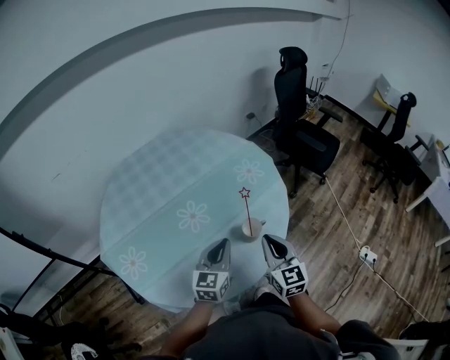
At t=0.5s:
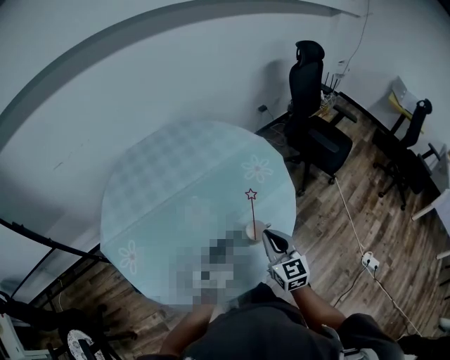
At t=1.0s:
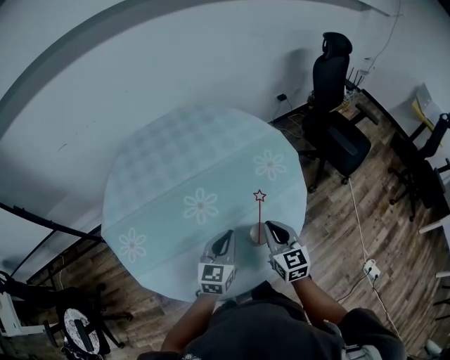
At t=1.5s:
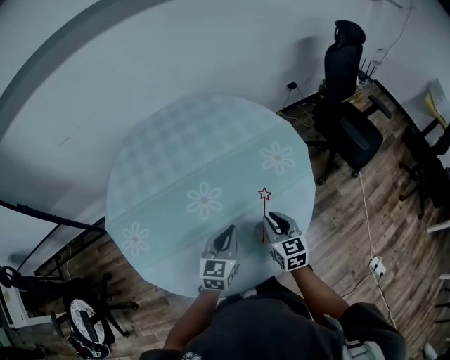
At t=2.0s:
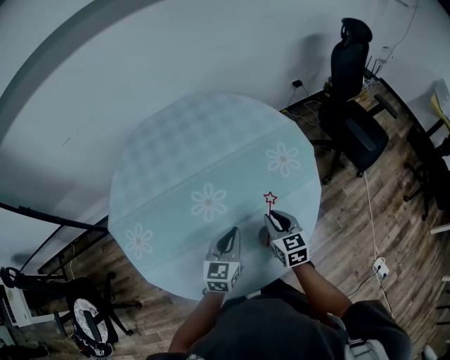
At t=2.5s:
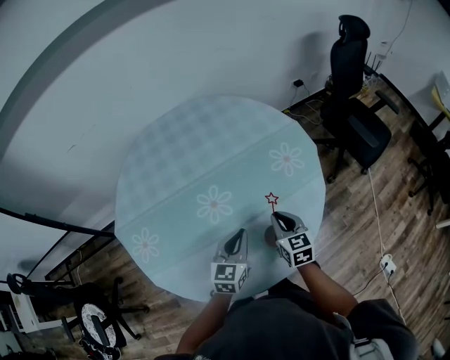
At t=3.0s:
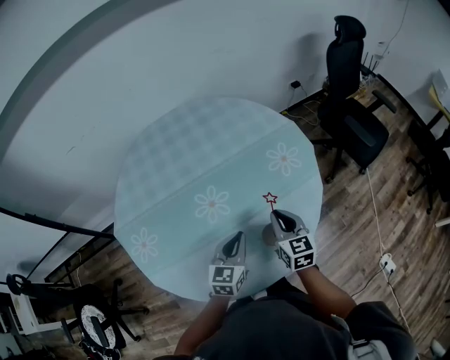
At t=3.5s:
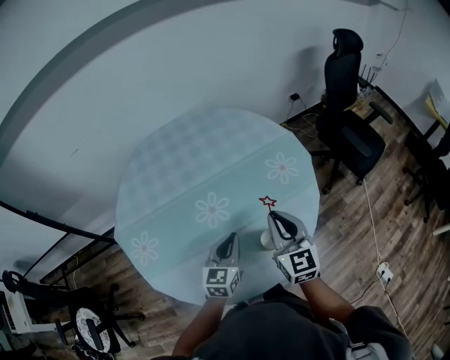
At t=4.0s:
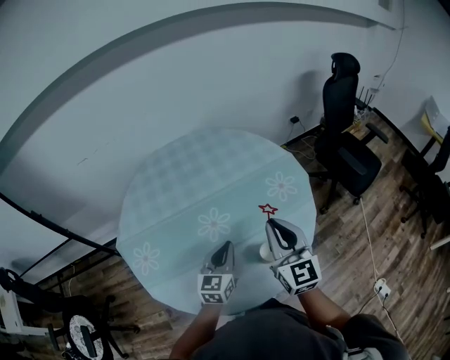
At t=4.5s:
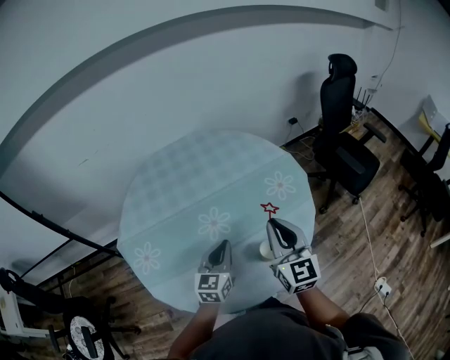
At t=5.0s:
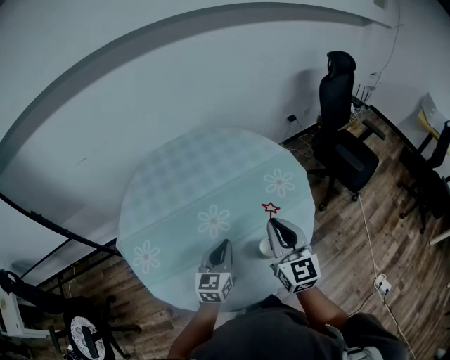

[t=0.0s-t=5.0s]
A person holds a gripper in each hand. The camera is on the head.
t=0.0s to t=2.5s: The left gripper is displaced forward and downward by approximately 10 cm; the right gripper heads forward and downward, covering some 20 cm, and swivels about 20 degrees.
t=2.5s to t=5.0s: The right gripper moves upward, about 20 cm, and rotates roughly 30 degrees; the left gripper moves upward, roughly 5 cm.

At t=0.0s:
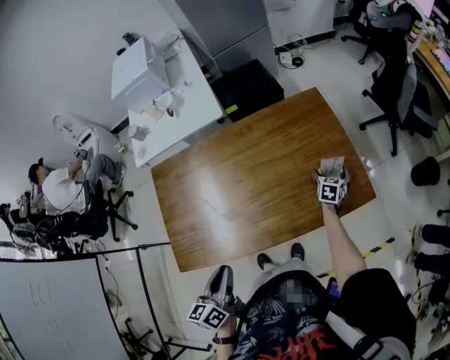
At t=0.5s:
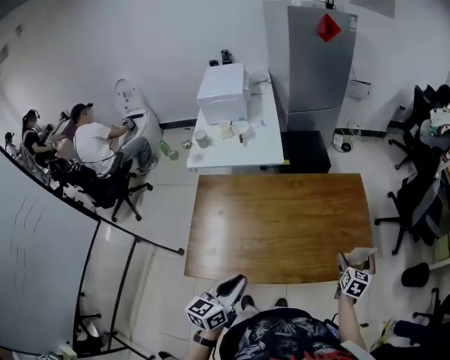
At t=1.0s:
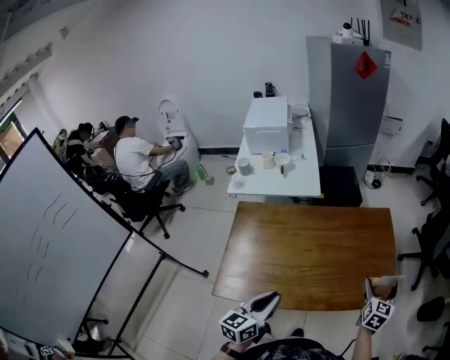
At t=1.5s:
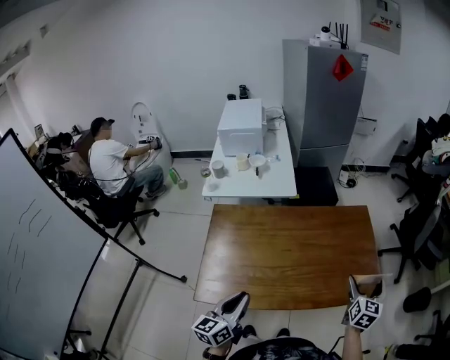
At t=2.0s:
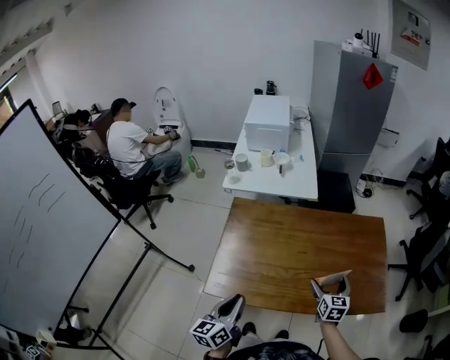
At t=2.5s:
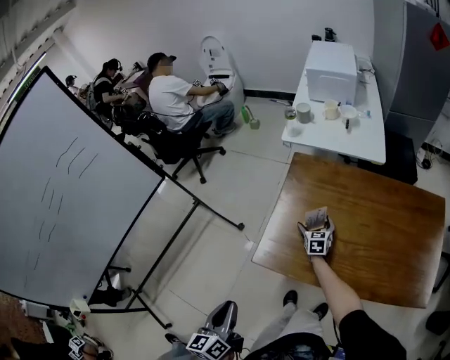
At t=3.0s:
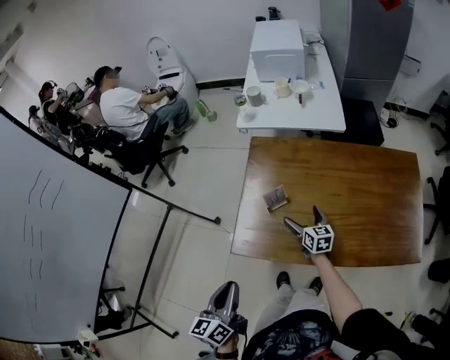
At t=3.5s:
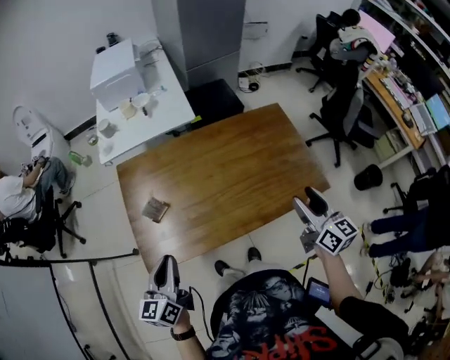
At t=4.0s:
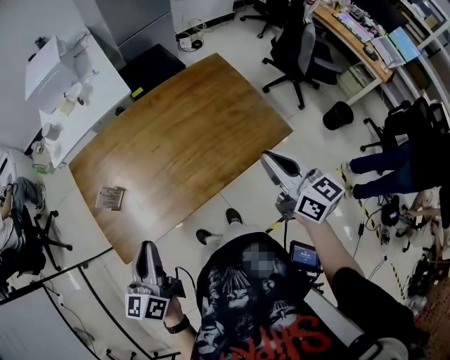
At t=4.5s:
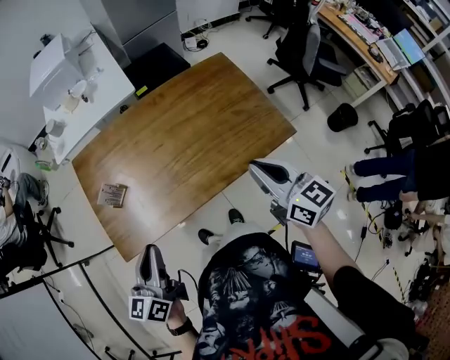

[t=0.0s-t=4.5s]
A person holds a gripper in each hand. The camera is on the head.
t=0.0s to t=2.0s: The left gripper goes some 20 cm to the left and backward; the right gripper is displaced to the left, upward and backward by some 40 cm, and swivels approximately 30 degrees.
t=2.0s to t=4.5s: The right gripper turns by about 20 degrees, and closes its fingers. Meanwhile the left gripper changes its angle by roughly 20 degrees.

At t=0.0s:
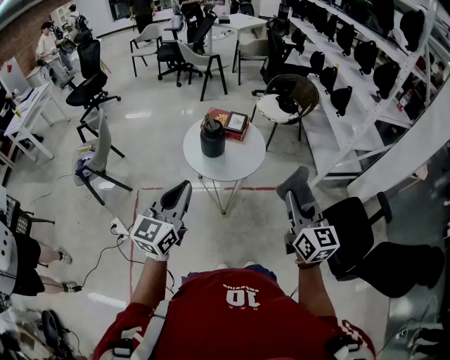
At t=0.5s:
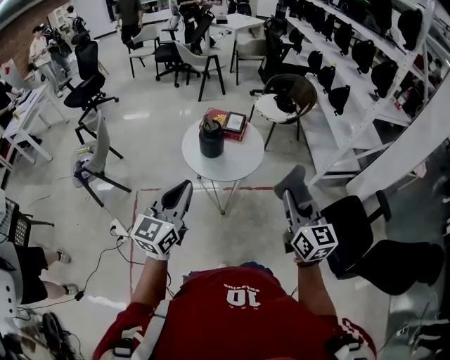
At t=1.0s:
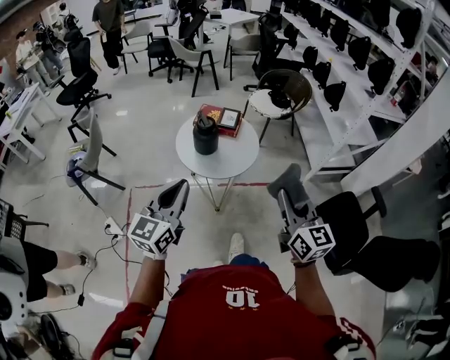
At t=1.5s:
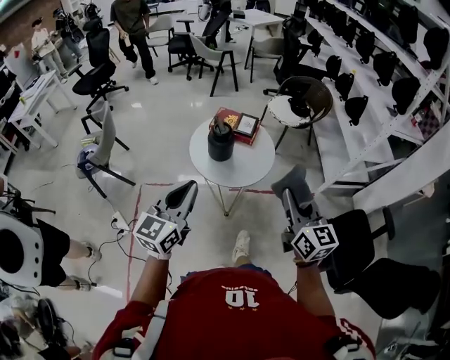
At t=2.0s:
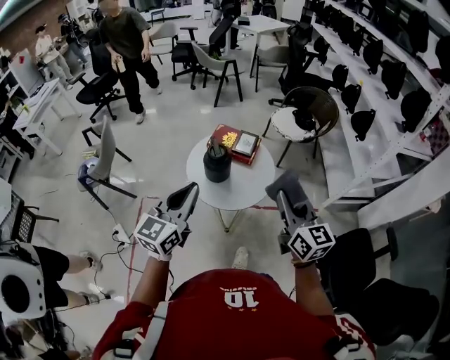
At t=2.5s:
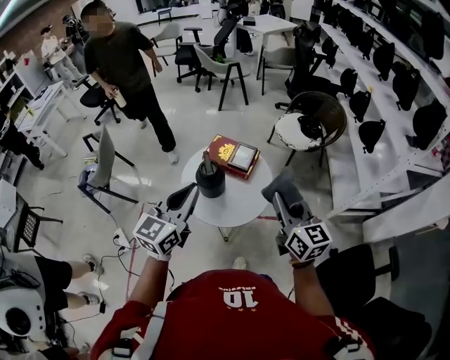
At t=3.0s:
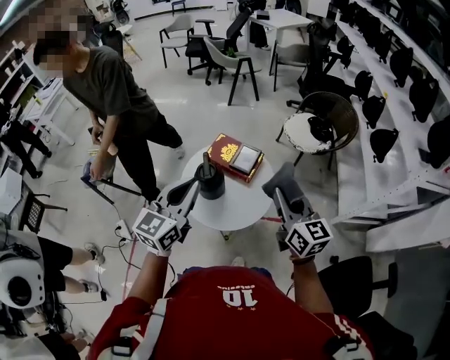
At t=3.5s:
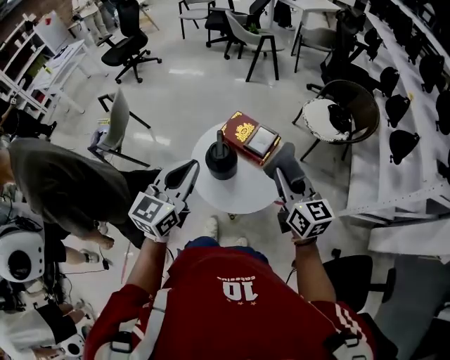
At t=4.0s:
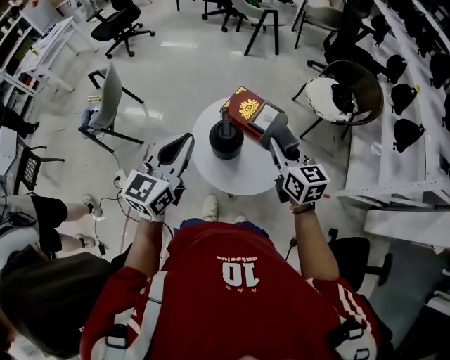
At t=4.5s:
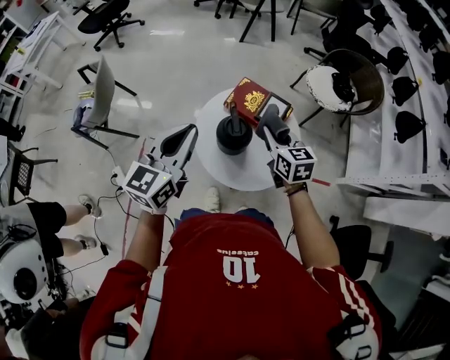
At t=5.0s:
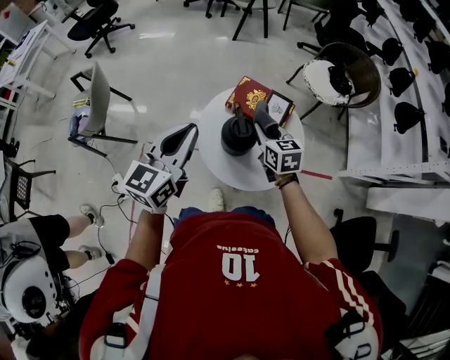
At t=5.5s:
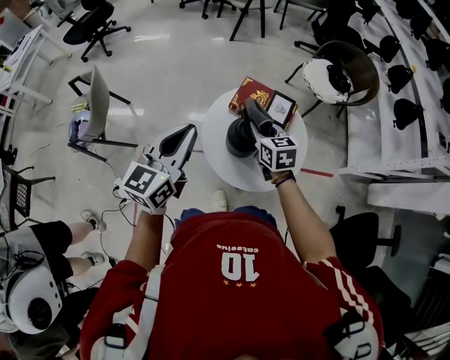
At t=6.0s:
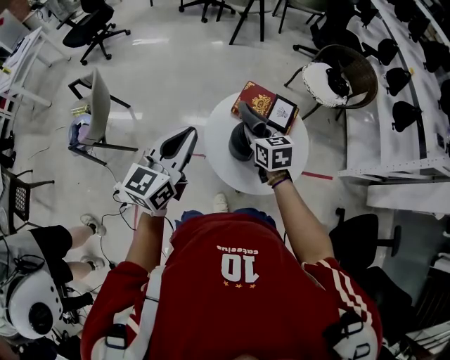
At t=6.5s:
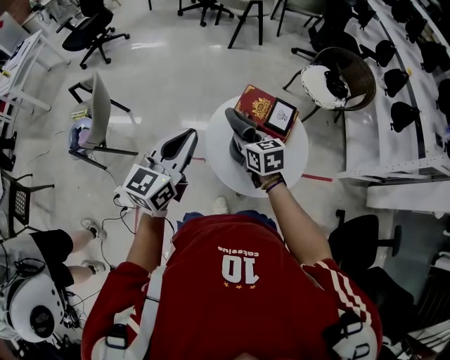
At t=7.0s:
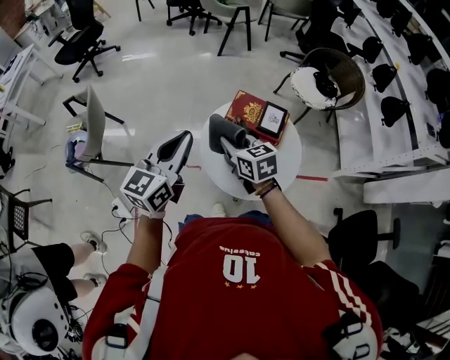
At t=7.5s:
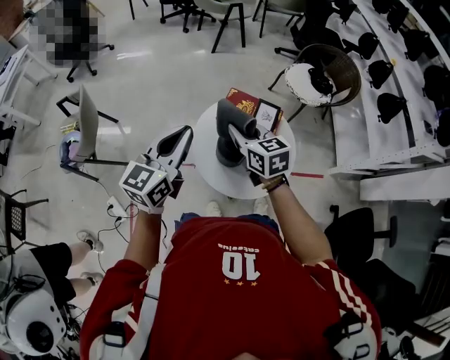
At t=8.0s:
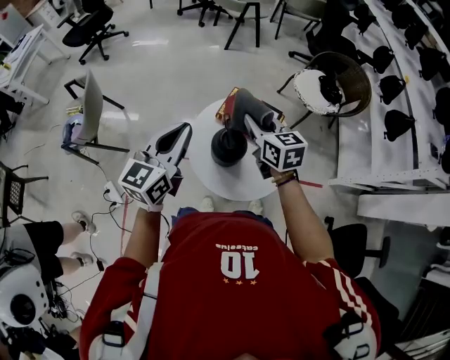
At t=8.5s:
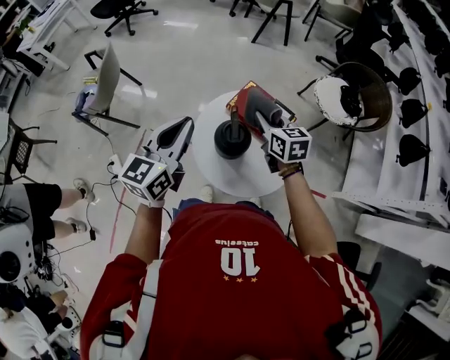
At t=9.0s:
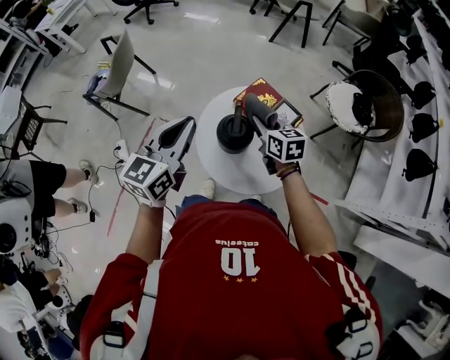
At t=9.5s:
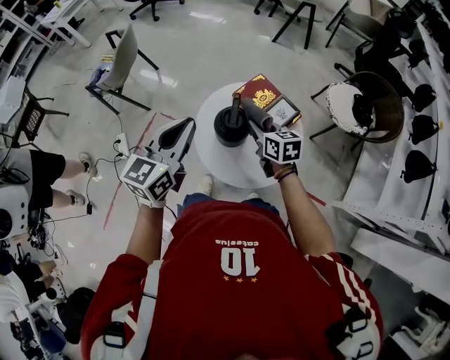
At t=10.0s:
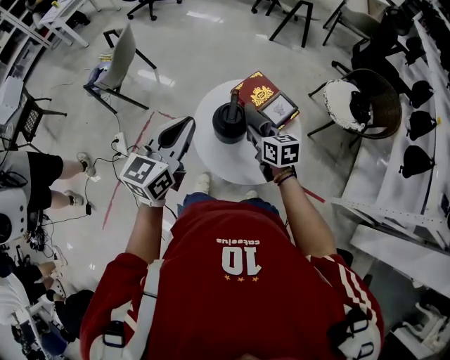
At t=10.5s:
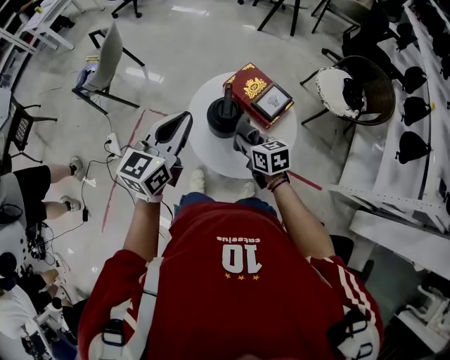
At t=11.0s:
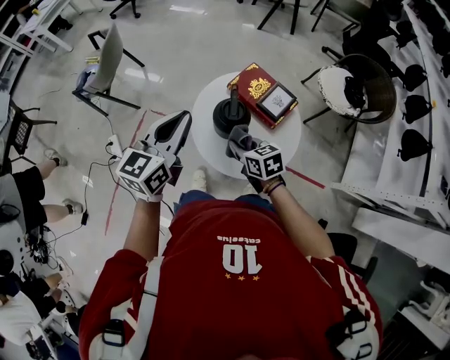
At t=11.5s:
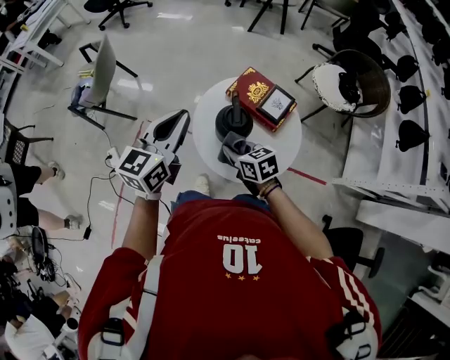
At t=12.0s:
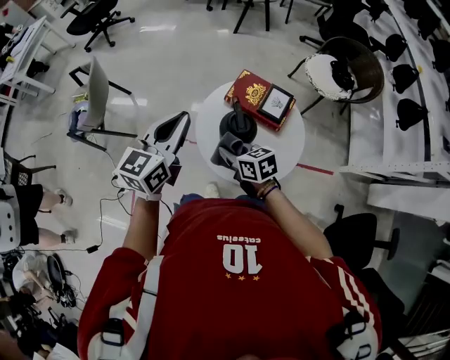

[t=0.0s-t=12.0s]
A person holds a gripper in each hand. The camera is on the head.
t=0.0s to t=2.0s: Both grippers move forward, about 20 cm.
t=2.0s to t=4.0s: The left gripper travels forward by about 20 cm. Meanwhile the right gripper shifts approximately 30 cm forward and downward, and changes its angle by about 20 degrees.
t=4.0s to t=6.0s: The left gripper heads to the left and forward, covering approximately 15 cm, while the right gripper goes approximately 20 cm to the left, downward and forward.
t=6.0s to t=8.0s: The right gripper moves upward and to the right, some 10 cm; the left gripper moves to the right, approximately 5 cm.
t=8.0s to t=10.0s: The right gripper is displaced downward and backward by some 15 cm, and swivels some 20 degrees; the left gripper moves backward, approximately 10 cm.
t=10.0s to t=12.0s: The right gripper shifts some 15 cm to the left; the left gripper shifts approximately 10 cm forward.

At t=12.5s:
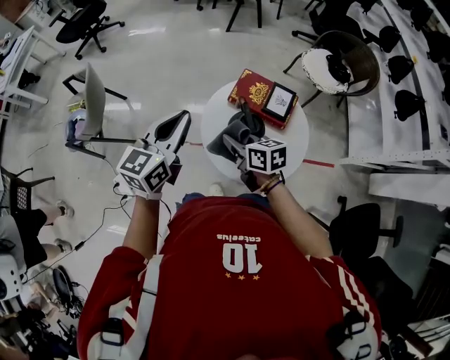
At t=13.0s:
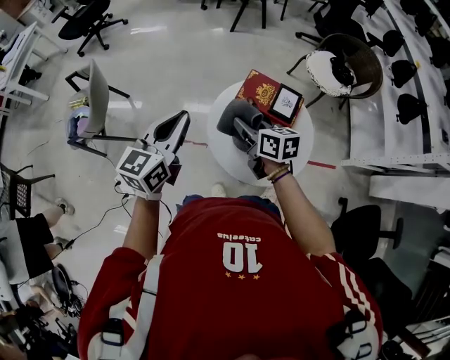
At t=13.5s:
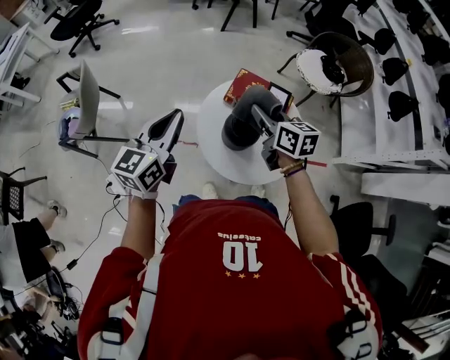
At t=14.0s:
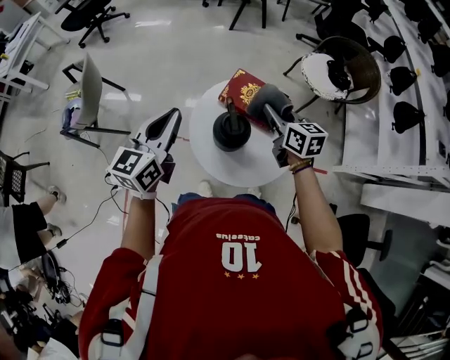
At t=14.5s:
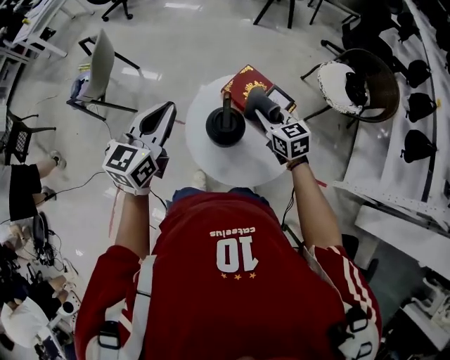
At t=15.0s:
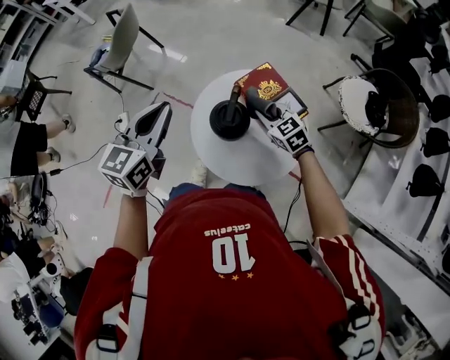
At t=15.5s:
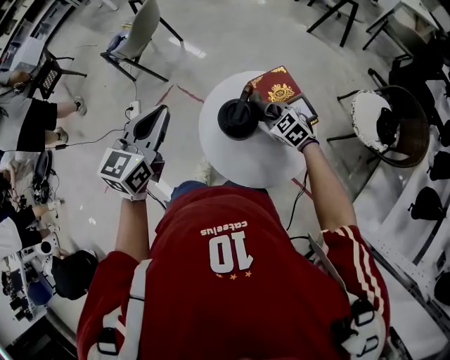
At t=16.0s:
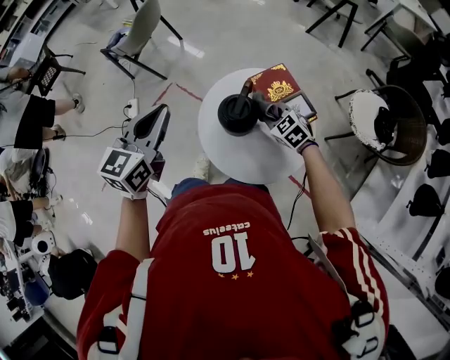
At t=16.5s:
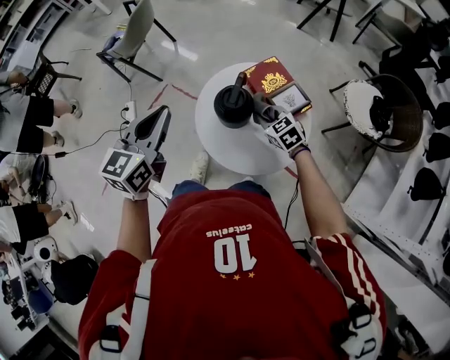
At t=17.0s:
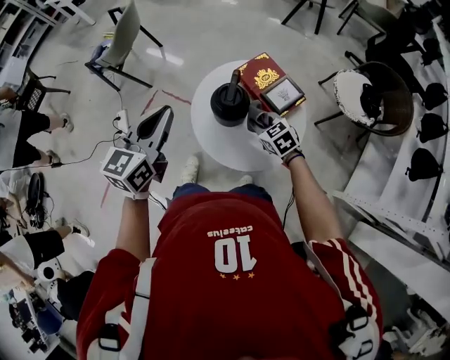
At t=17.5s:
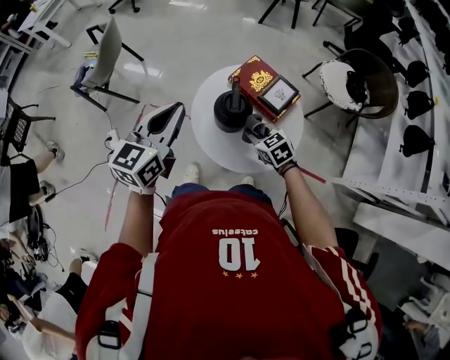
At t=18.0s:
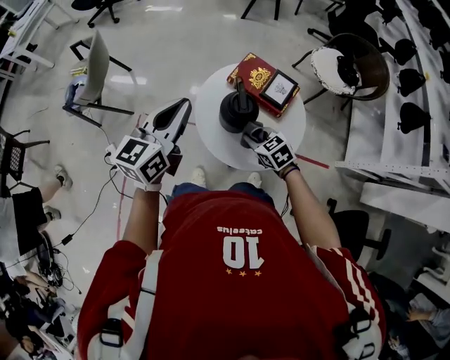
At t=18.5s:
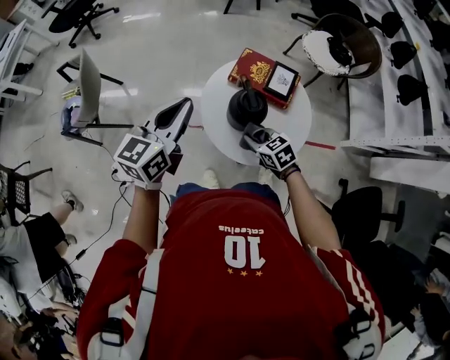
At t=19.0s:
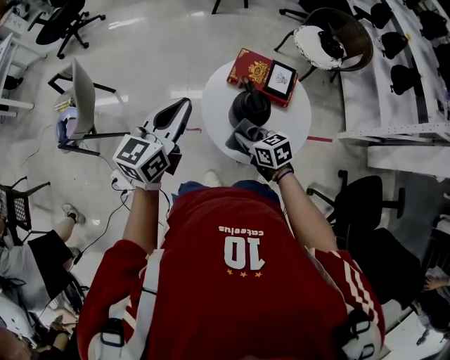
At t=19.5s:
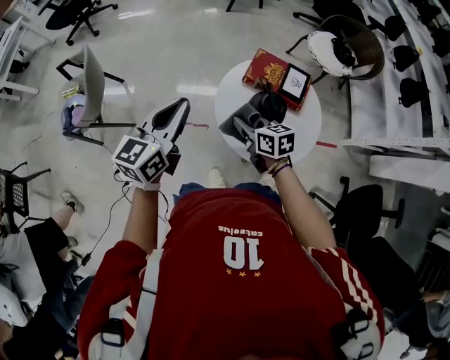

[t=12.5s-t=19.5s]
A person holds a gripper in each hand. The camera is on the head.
t=12.5s to t=14.5s: The right gripper heads to the right and forward, covering some 20 cm, and turns by some 30 degrees, while the left gripper heads to the right, covering roughly 5 cm.
t=14.5s to t=16.0s: The left gripper ends up about 10 cm from where it was, and rotates roughly 20 degrees, while the right gripper shifts roughly 10 cm downward, and turns by some 50 degrees.
t=16.0s to t=17.5s: The right gripper moves backward and to the left, about 10 cm, and swivels about 30 degrees, while the left gripper swivels roughly 20 degrees.
t=17.5s to t=19.5s: The left gripper heads to the left and forward, covering about 15 cm. The right gripper heads to the left, covering approximately 15 cm, and rotates about 40 degrees.
